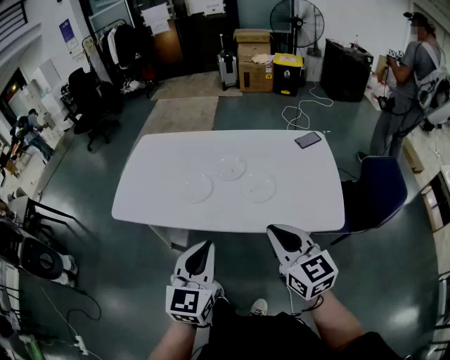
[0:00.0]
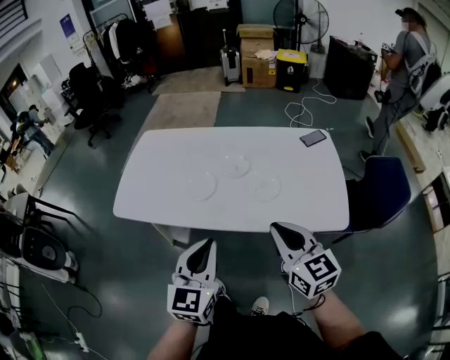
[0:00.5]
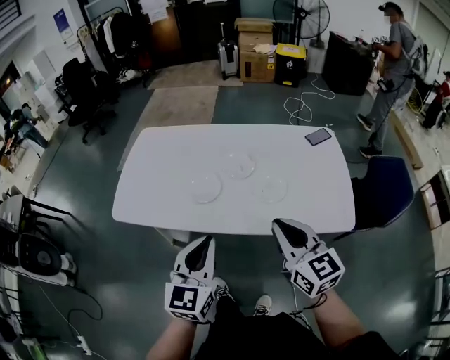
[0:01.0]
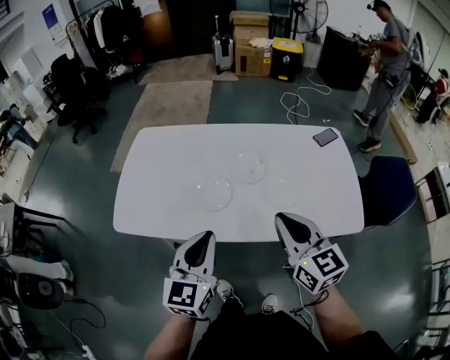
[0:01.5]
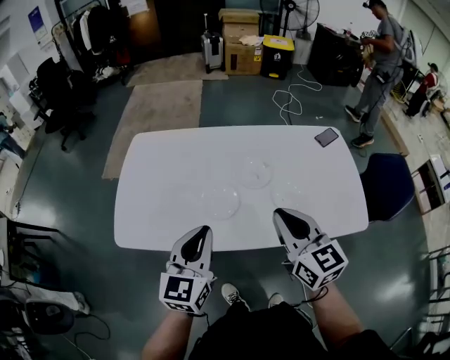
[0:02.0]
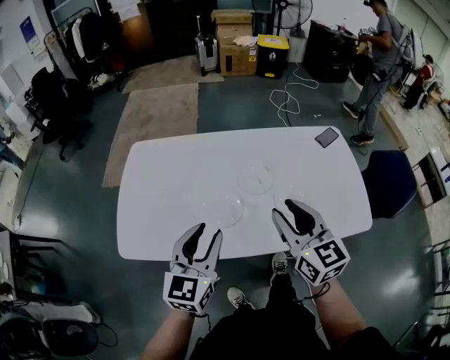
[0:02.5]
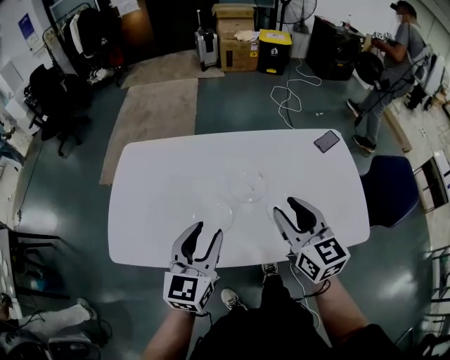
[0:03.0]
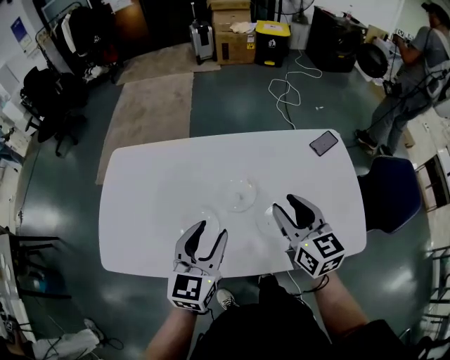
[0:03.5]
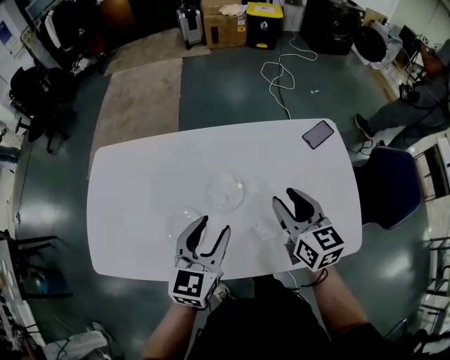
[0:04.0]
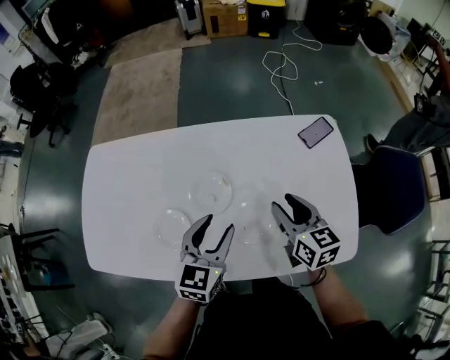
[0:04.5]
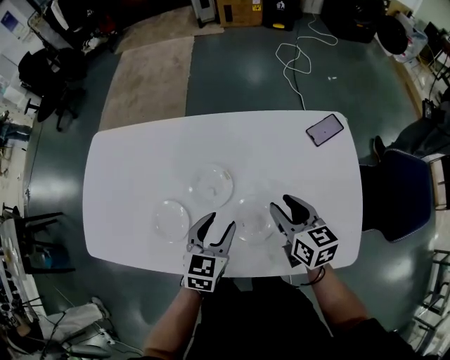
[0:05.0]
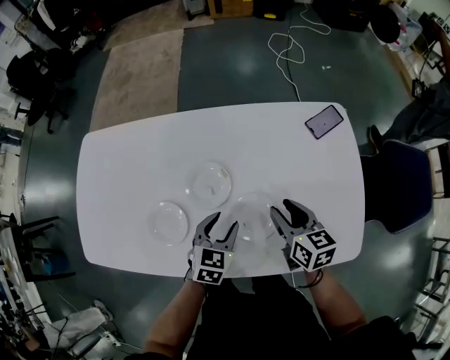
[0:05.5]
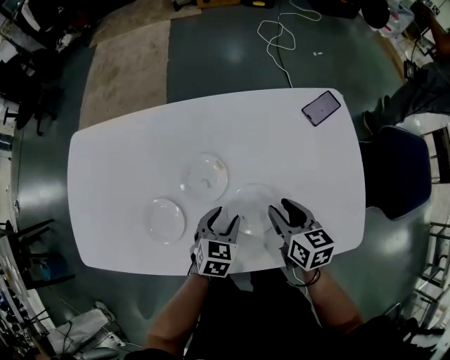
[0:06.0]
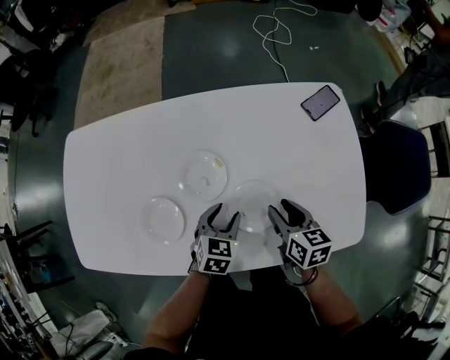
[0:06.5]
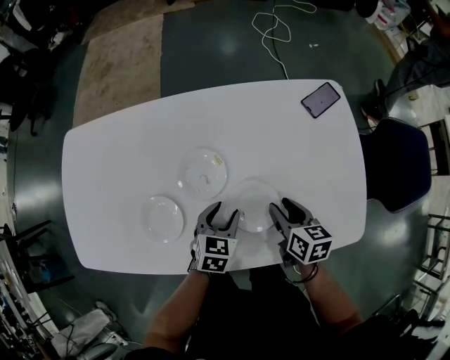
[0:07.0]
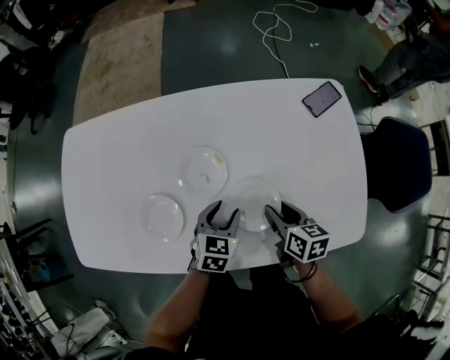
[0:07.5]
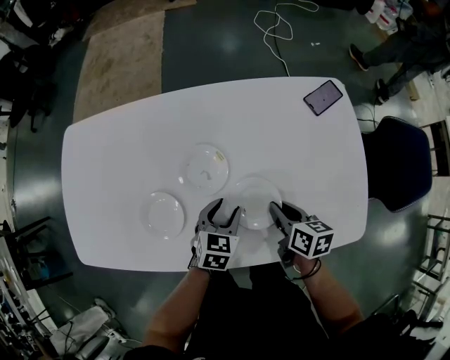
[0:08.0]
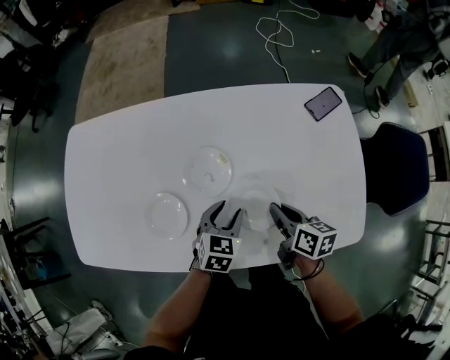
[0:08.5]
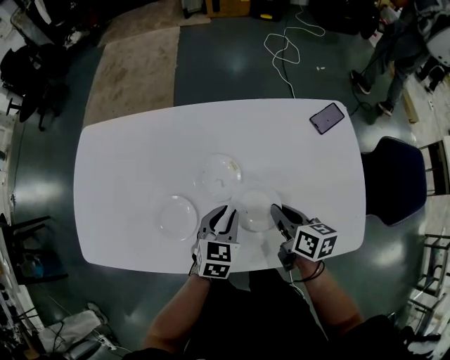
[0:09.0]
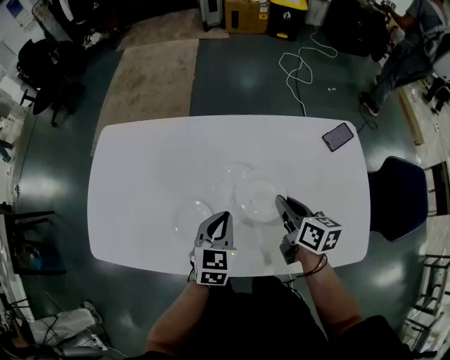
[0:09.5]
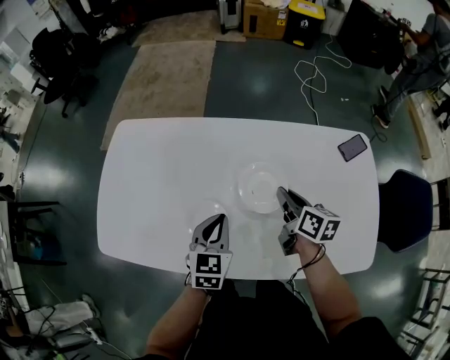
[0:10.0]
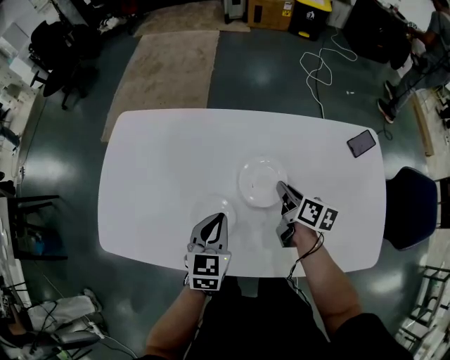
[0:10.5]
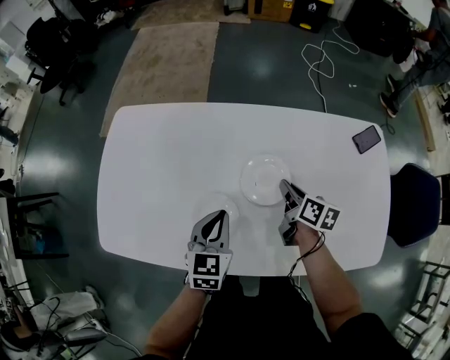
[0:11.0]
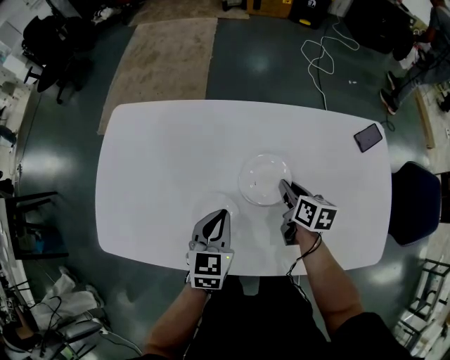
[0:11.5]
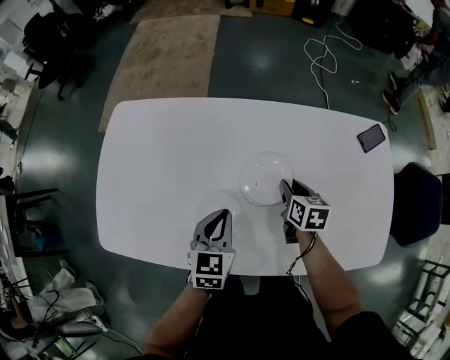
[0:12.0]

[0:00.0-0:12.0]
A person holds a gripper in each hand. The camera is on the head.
0:00.0 to 0:02.0: Both grippers move forward and to the left, some 25 cm.
0:02.0 to 0:04.0: The left gripper goes approximately 25 cm forward and to the right, and opens up; the right gripper goes about 30 cm forward, to the right and downward, and opens.
0:04.0 to 0:06.0: The grippers both shift downward by roughly 20 cm. The right gripper rotates about 20 degrees. The left gripper swivels roughly 30 degrees.
0:06.0 to 0:08.0: The right gripper goes some 5 cm downward, and closes up.
0:08.0 to 0:10.0: The right gripper moves to the left, forward and upward, approximately 20 cm; the left gripper moves to the left and upward, roughly 20 cm, changes its angle by approximately 20 degrees, and closes up.
0:10.0 to 0:12.0: The left gripper moves some 5 cm; the right gripper shifts about 10 cm downward, turns by approximately 20 degrees, and opens up.

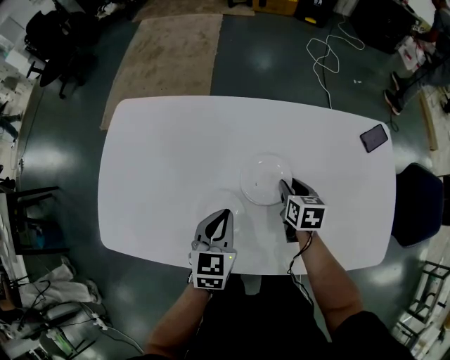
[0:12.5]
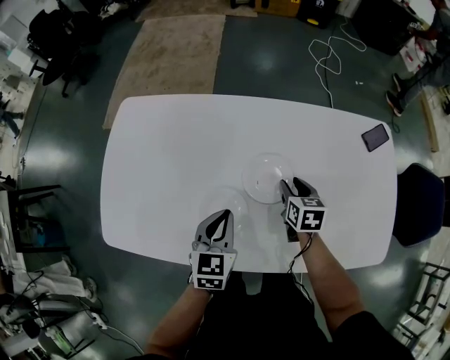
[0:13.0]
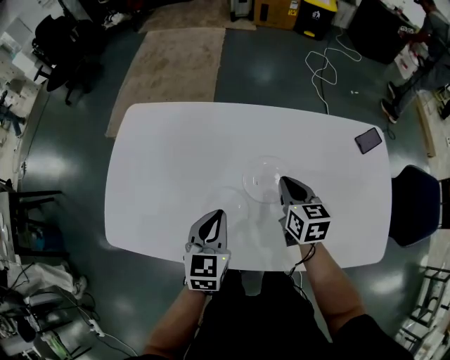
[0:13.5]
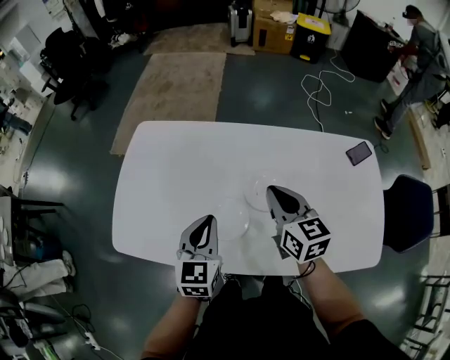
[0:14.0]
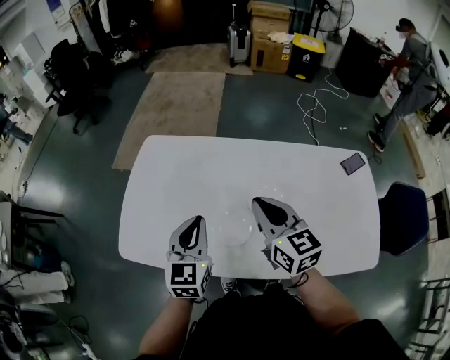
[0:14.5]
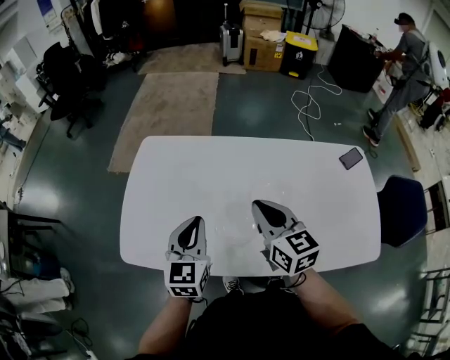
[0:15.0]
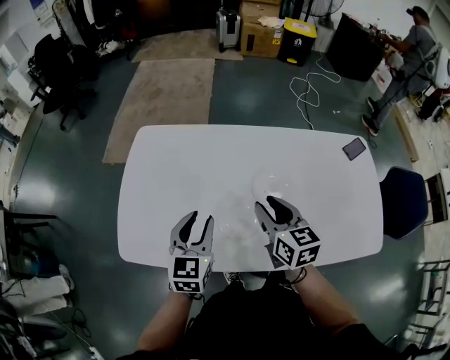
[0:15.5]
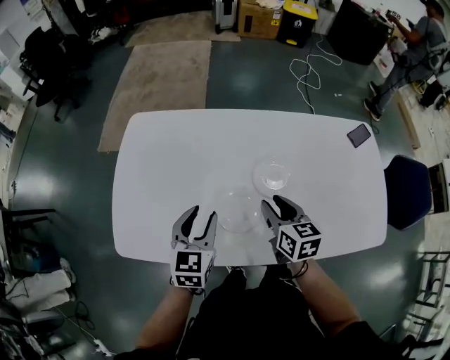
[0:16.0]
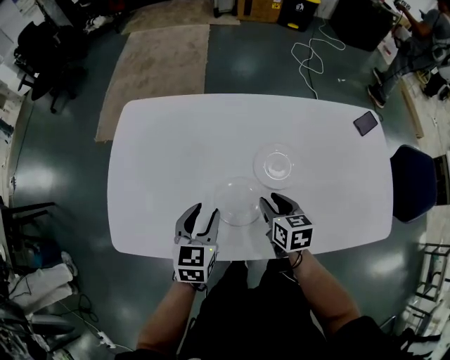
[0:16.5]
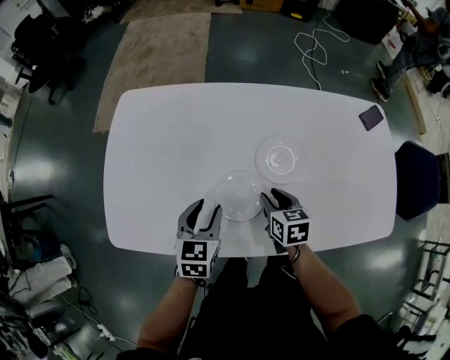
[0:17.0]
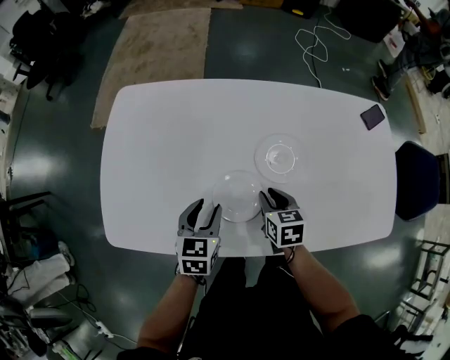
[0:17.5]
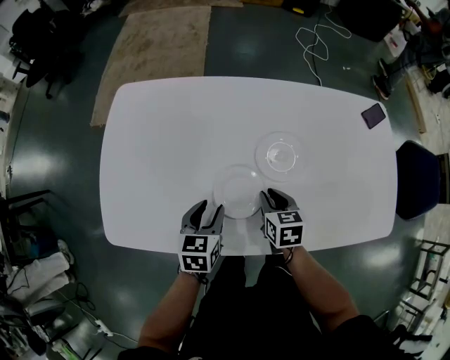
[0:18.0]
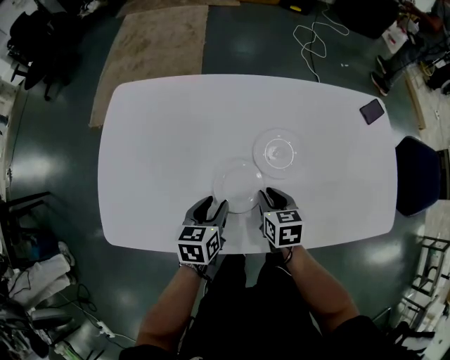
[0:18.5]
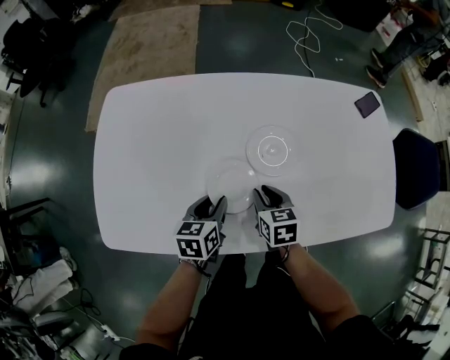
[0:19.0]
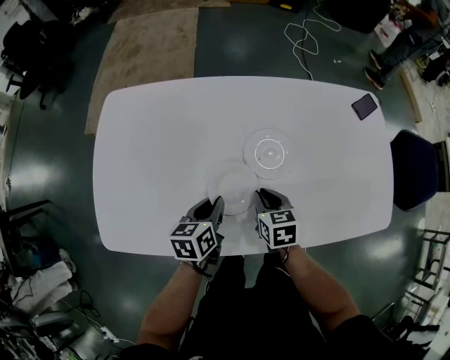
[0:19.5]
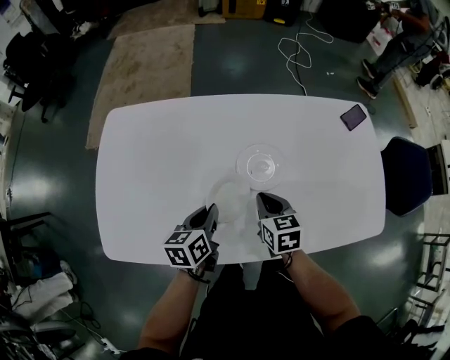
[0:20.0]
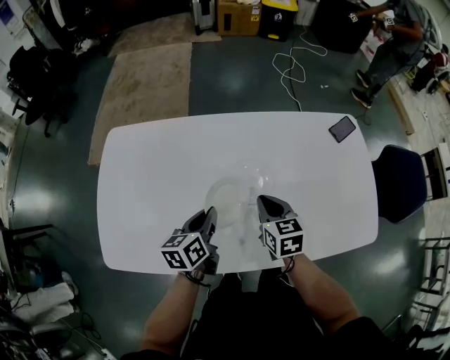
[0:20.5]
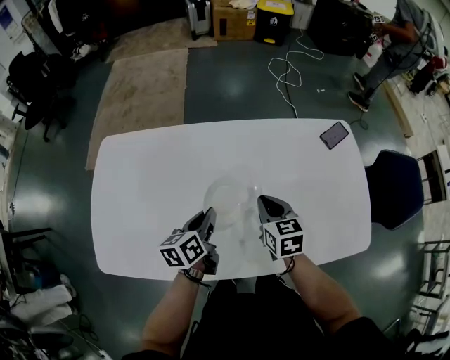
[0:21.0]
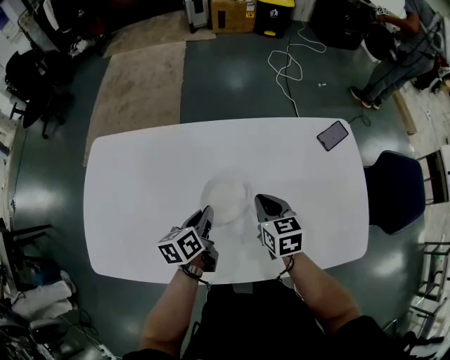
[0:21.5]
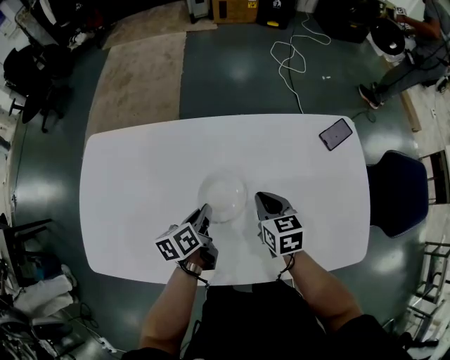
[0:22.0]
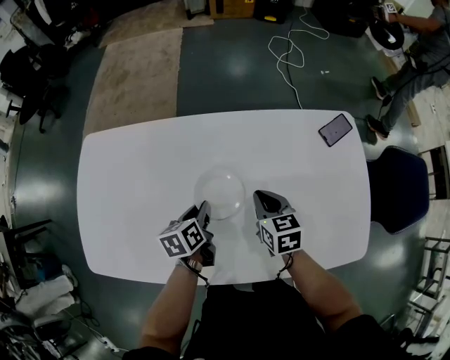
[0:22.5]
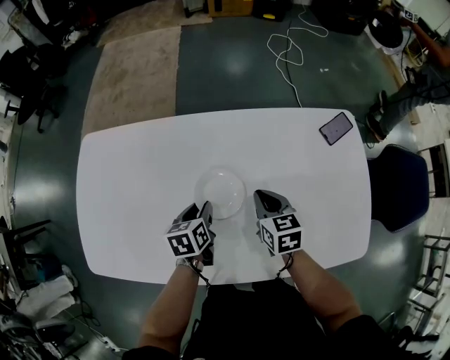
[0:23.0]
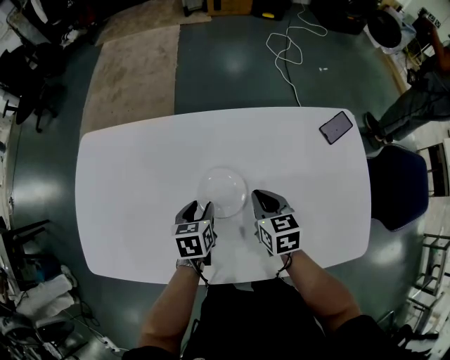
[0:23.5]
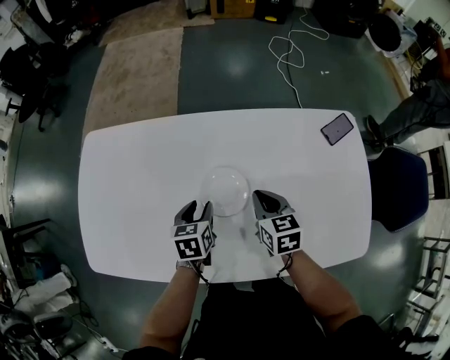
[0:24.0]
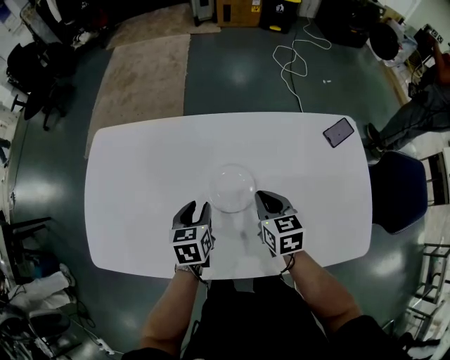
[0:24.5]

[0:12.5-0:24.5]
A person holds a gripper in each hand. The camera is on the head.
0:12.5 to 0:14.5: The right gripper heads upward and to the left, covering approximately 35 cm, angles its fingers upward, by approximately 30 degrees, and closes up. The left gripper moves upward and to the left, some 20 cm.
0:14.5 to 0:16.5: The right gripper moves downward, some 25 cm, changes its angle by about 30 degrees, and opens its fingers, while the left gripper travels downward by approximately 15 cm, rotates about 20 degrees, and opens.
0:16.5 to 0:18.5: The right gripper goes approximately 5 cm downward. The left gripper goes about 10 cm downward.
0:18.5 to 0:20.5: The two grippers go about 10 cm upward and to the right. The left gripper closes its fingers.
0:20.5 to 0:22.5: The right gripper goes about 10 cm to the right and forward, while the left gripper travels to the right, downward and forward by roughly 15 cm.
0:22.5 to 0:24.5: The left gripper moves some 5 cm, changes its angle by about 20 degrees, and opens its fingers.

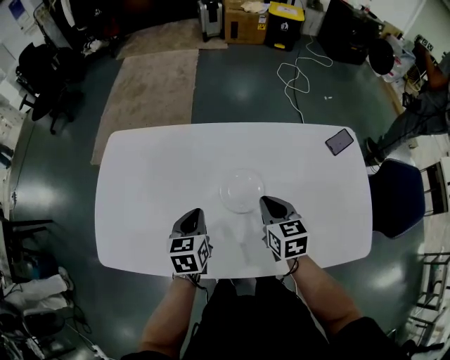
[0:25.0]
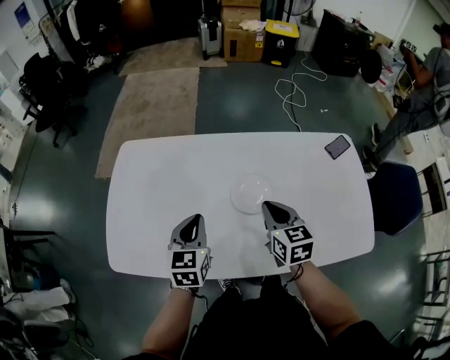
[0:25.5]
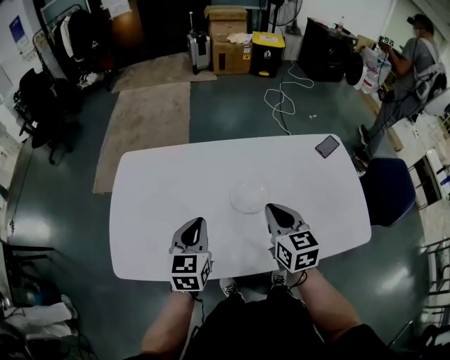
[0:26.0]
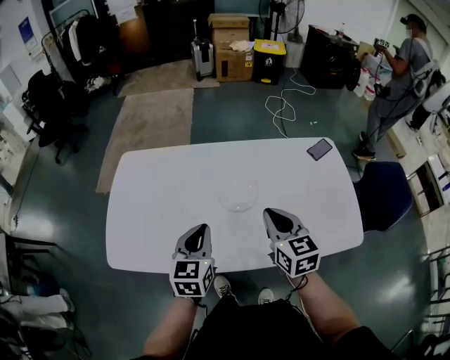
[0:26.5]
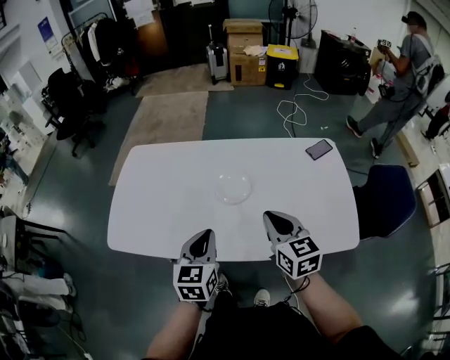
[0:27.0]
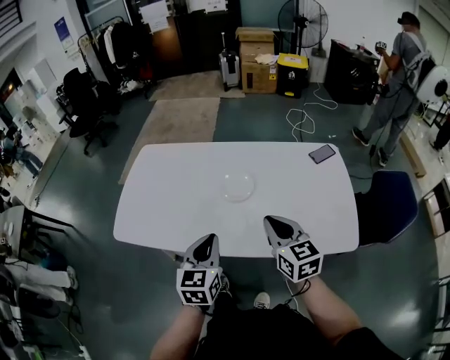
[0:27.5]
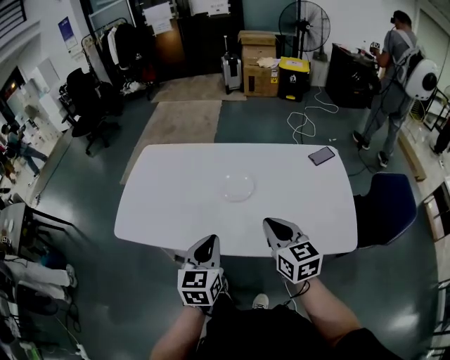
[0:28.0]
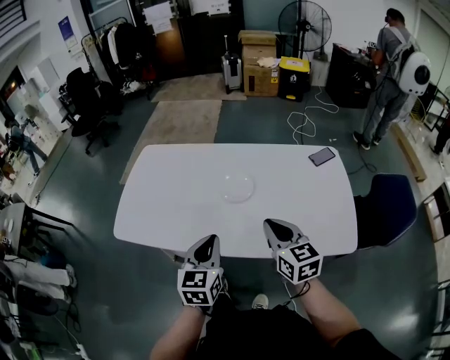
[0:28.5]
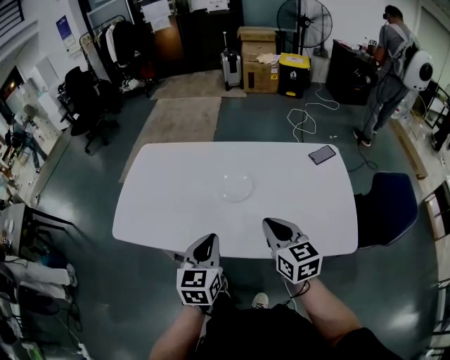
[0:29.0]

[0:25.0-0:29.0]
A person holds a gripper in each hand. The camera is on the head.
0:25.0 to 0:27.0: The left gripper moves backward, upward and to the right, some 25 cm; the right gripper travels backward and upward by roughly 20 cm.
0:27.0 to 0:29.0: The left gripper shifts approximately 5 cm backward.
